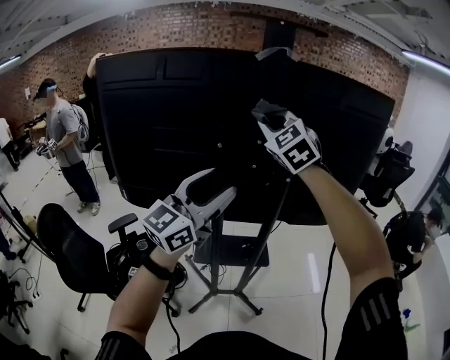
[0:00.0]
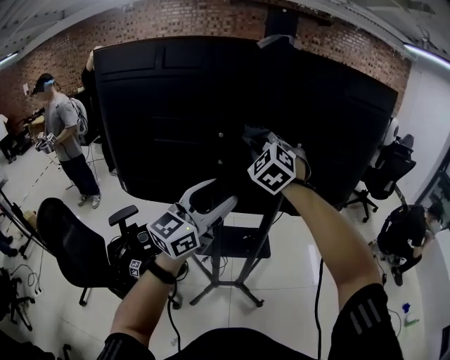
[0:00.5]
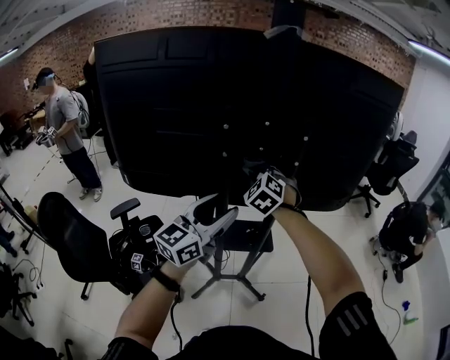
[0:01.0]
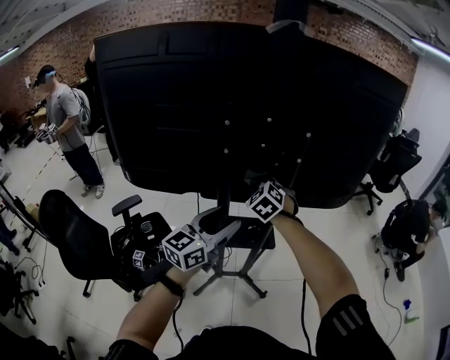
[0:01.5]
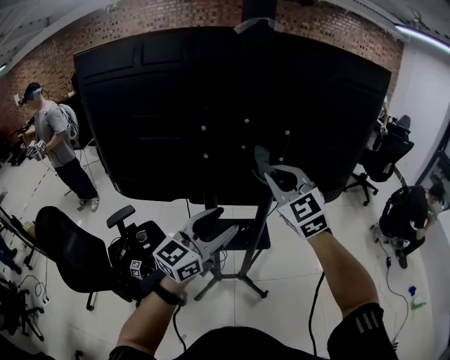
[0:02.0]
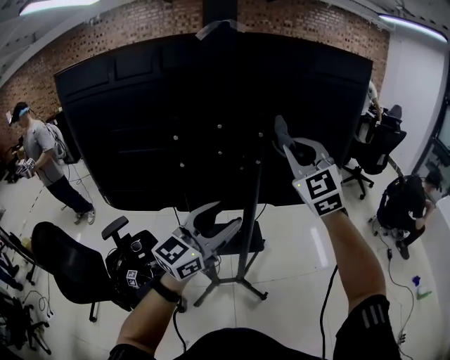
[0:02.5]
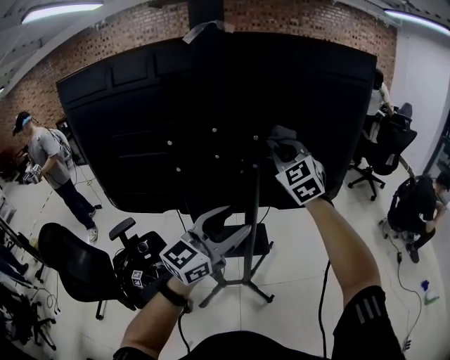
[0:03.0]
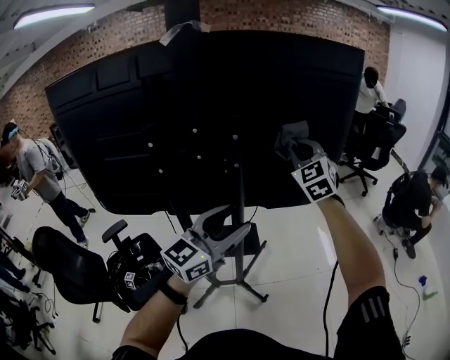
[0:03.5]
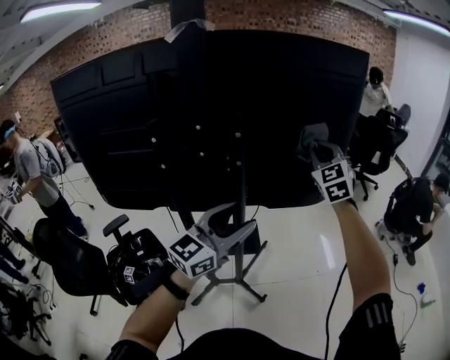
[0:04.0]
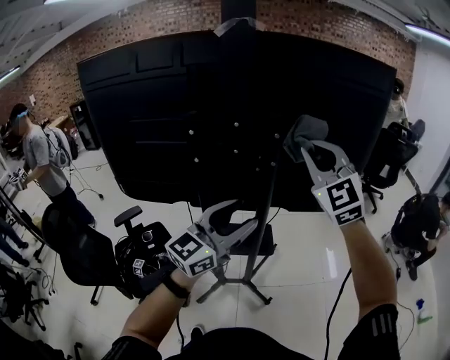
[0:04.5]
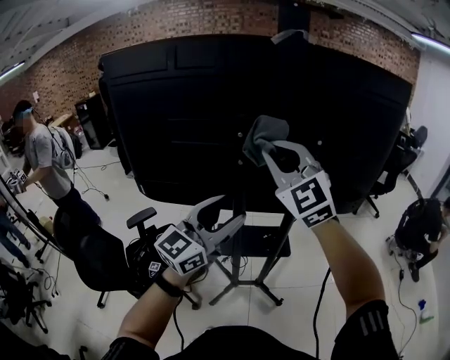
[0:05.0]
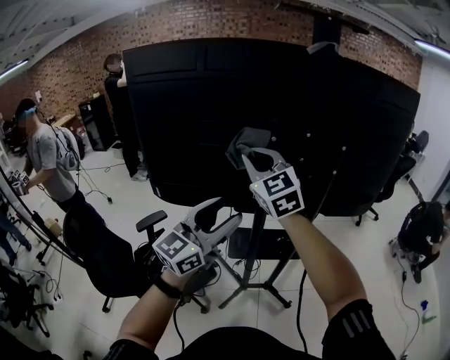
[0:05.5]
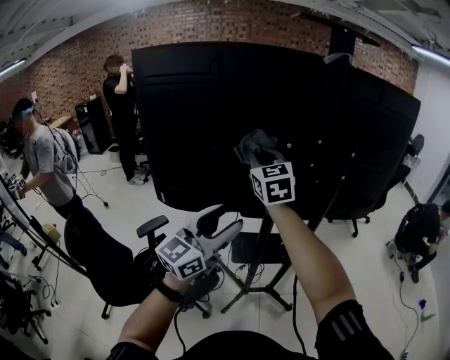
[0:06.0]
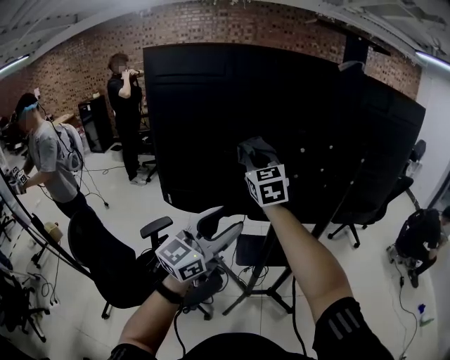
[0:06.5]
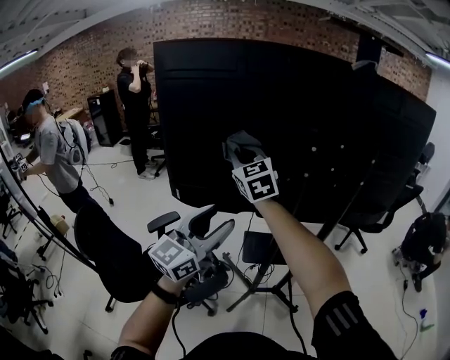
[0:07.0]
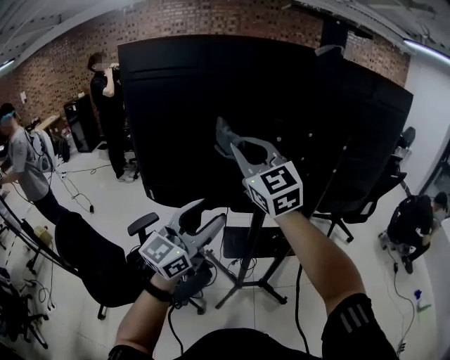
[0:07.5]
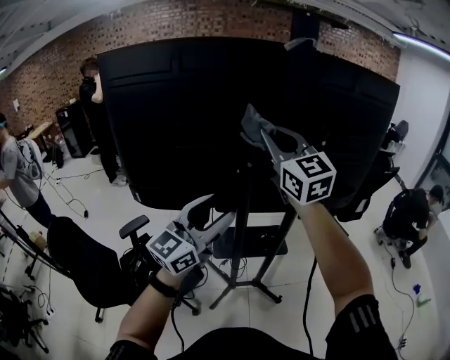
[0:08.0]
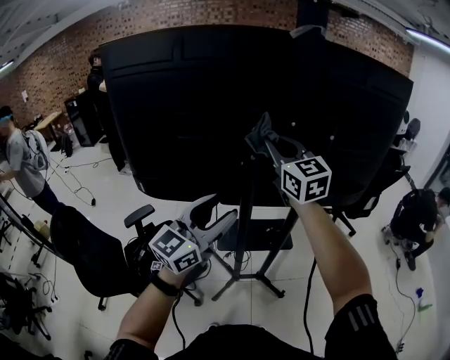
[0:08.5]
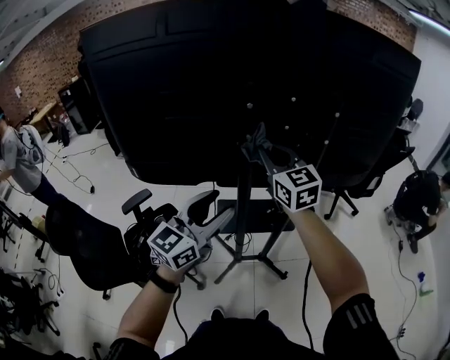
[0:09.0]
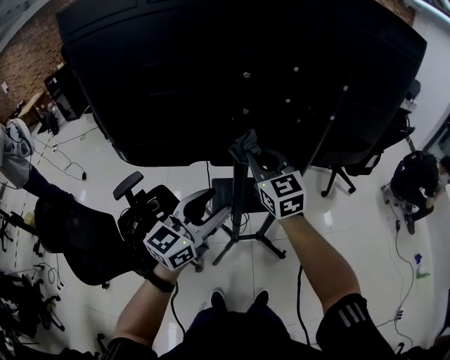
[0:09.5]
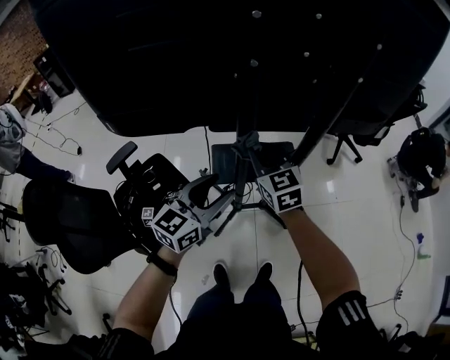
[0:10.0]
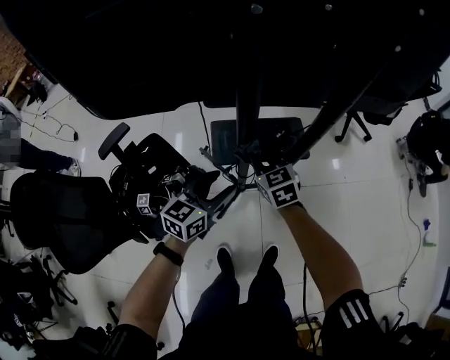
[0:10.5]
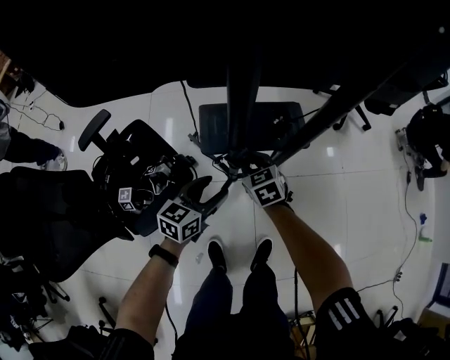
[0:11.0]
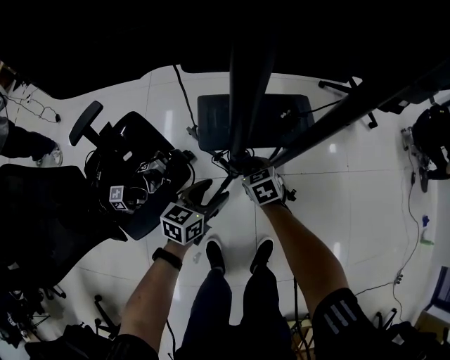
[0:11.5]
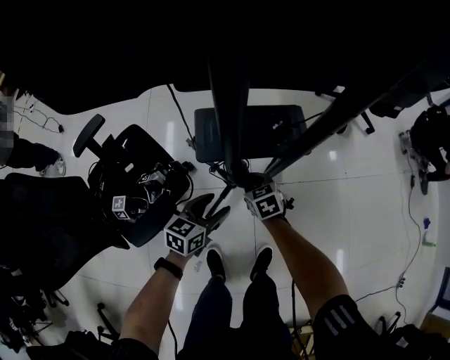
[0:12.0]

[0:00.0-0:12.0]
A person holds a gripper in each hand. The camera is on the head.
0:00.0 to 0:02.0: The right gripper travels downward, to the right and backward by roughly 20 cm. The left gripper is displaced downward by about 15 cm.
0:02.0 to 0:04.0: The left gripper goes about 15 cm to the right and forward, while the right gripper is displaced to the right and forward by some 30 cm, and changes its angle by roughly 20 degrees.
0:04.0 to 0:06.0: Both grippers travel together to the left, about 40 cm. The right gripper rotates roughly 20 degrees.
0:06.0 to 0:08.0: The right gripper travels to the right and upward by some 15 cm. The left gripper is displaced to the right by roughly 5 cm.
0:08.0 to 0:10.0: The left gripper travels downward by about 25 cm, and swivels roughly 30 degrees. The right gripper moves downward, some 40 cm, and changes its angle by about 30 degrees.
0:10.0 to 0:12.0: The two grippers go approximately 40 cm downward. The left gripper turns by roughly 30 degrees. The right gripper points its fingers some 30 degrees further downward.

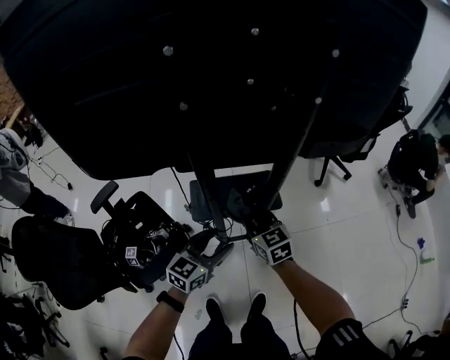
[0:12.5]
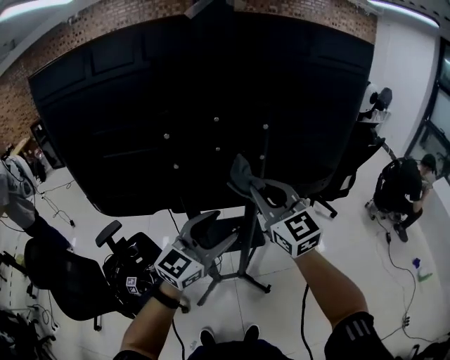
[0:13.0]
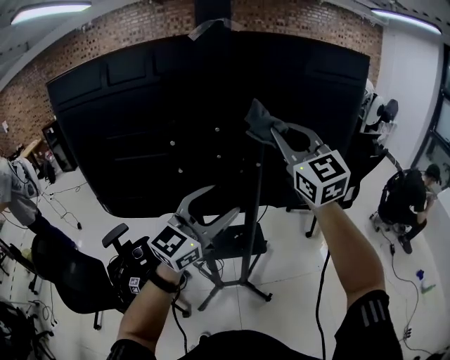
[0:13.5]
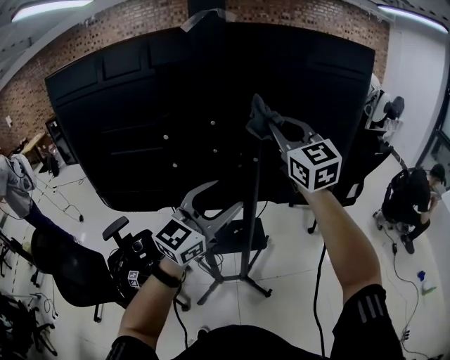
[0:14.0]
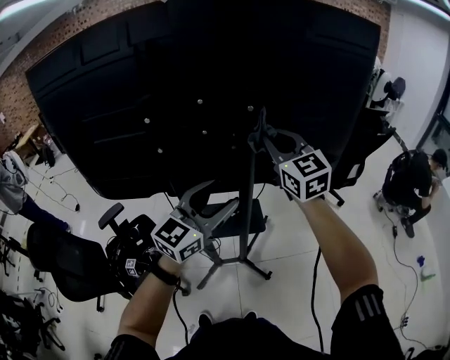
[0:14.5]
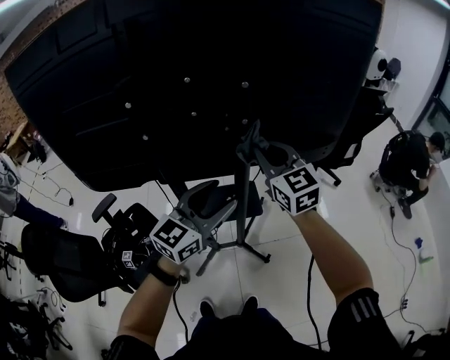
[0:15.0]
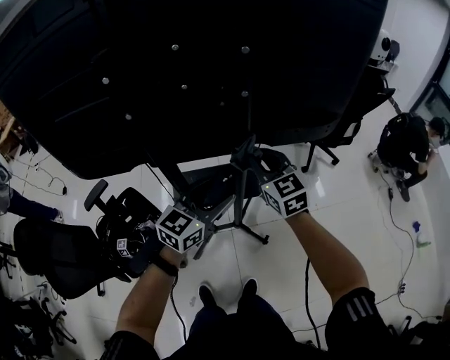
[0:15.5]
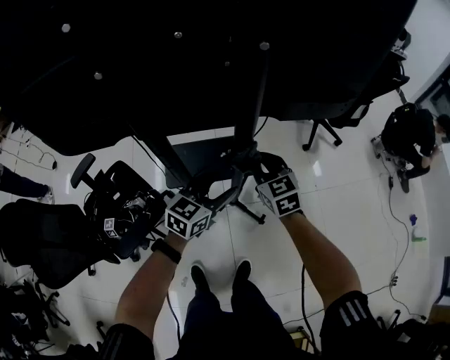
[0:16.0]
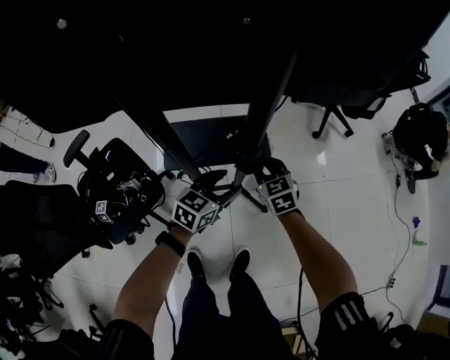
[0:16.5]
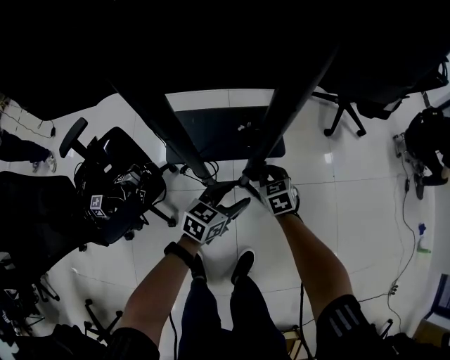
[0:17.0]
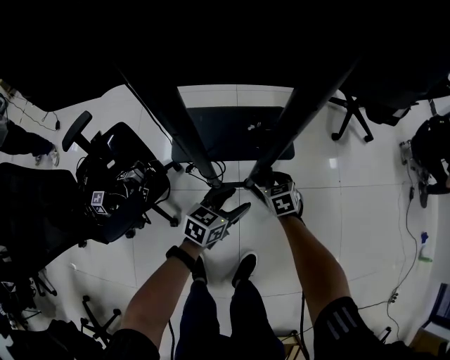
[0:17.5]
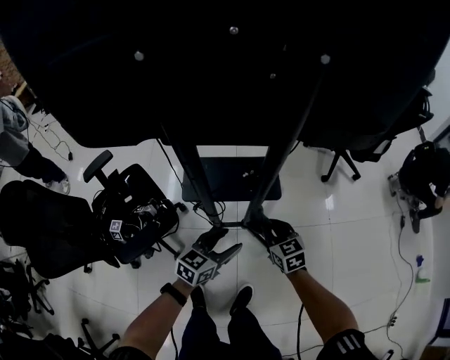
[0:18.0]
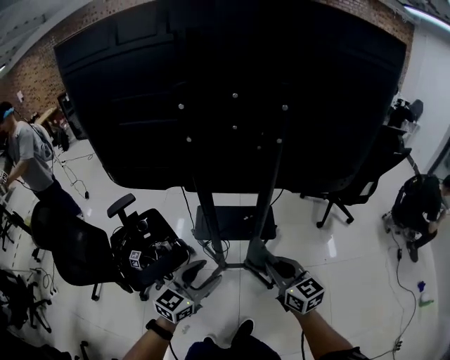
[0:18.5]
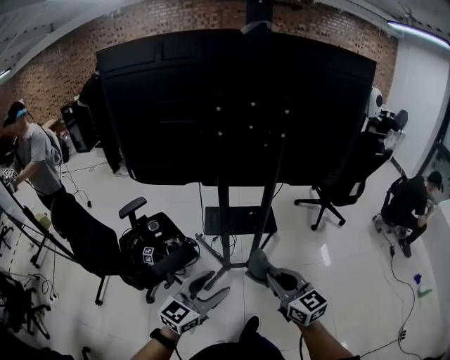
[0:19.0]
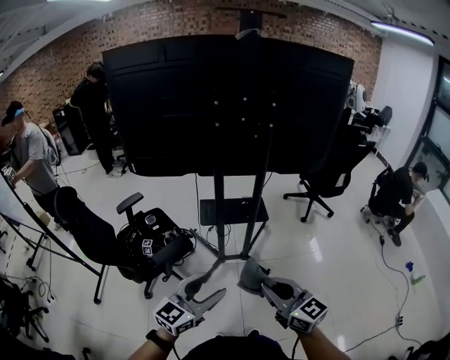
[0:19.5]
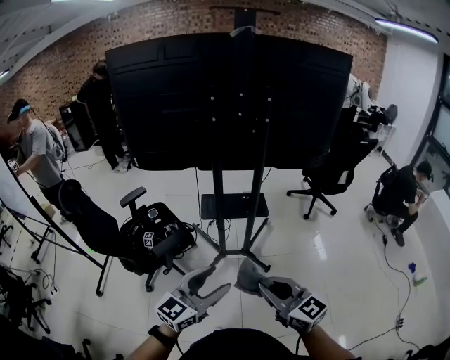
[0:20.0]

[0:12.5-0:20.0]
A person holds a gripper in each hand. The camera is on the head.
0:12.5 to 0:14.5: Both grippers move upward, approximately 35 cm. The right gripper changes its angle by approximately 30 degrees, while the left gripper rotates approximately 30 degrees.
0:14.5 to 0:16.5: Both grippers travel together downward, roughly 50 cm. The left gripper swivels some 40 degrees. Meanwhile the right gripper angles its fingers downward, by roughly 40 degrees.
0:16.5 to 0:18.0: The two grippers go approximately 10 cm backward. The right gripper reaches about 20 cm downward, then returns, while the left gripper moves some 15 cm downward and comes back.
0:18.0 to 0:20.0: The two grippers travel together, backward, approximately 40 cm. The grippers both shift upward by approximately 30 cm. The right gripper changes its angle by roughly 30 degrees. The left gripper swivels approximately 30 degrees.

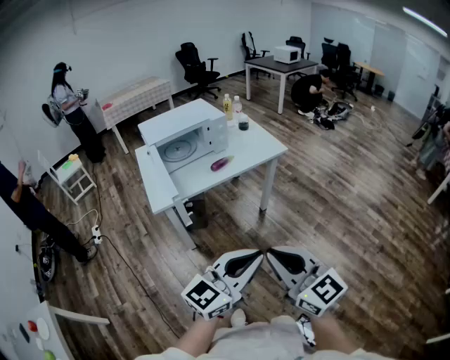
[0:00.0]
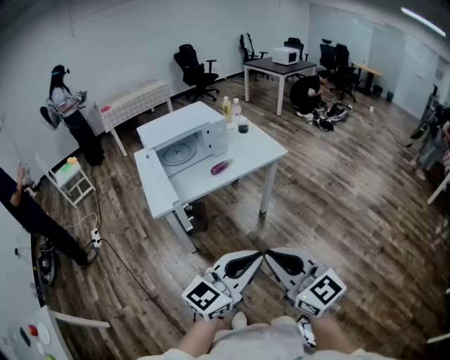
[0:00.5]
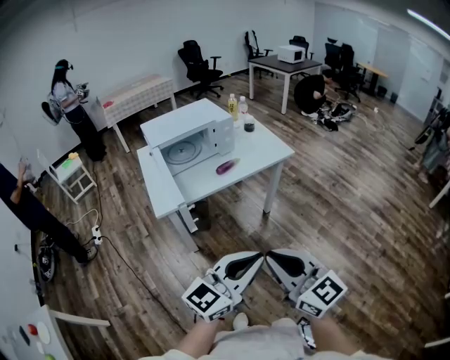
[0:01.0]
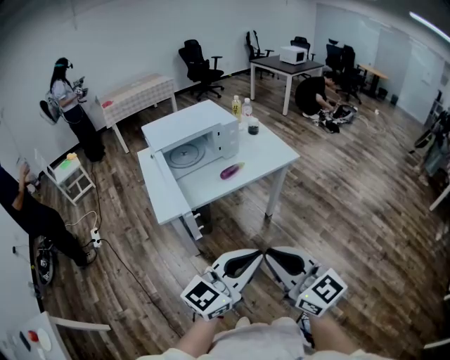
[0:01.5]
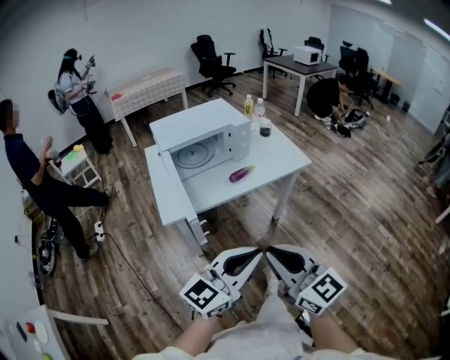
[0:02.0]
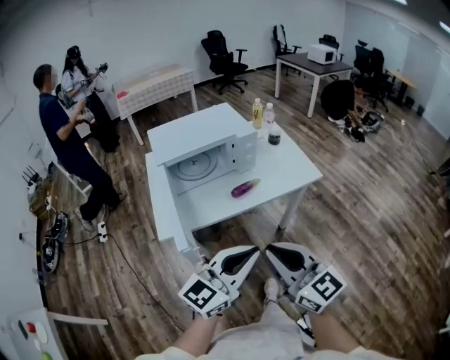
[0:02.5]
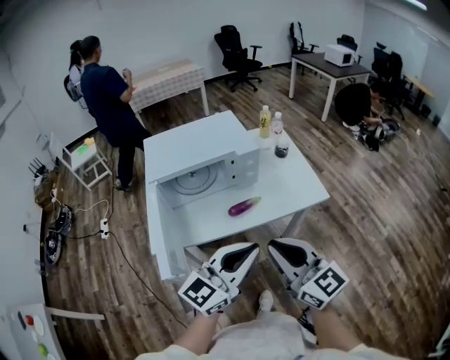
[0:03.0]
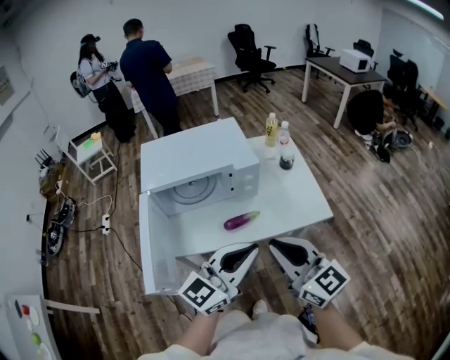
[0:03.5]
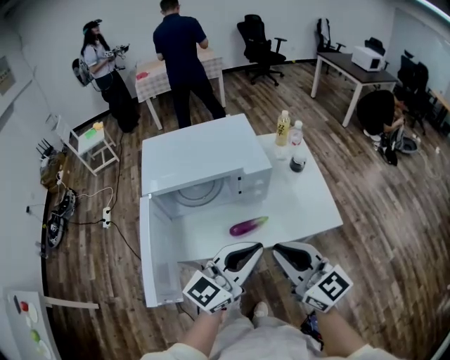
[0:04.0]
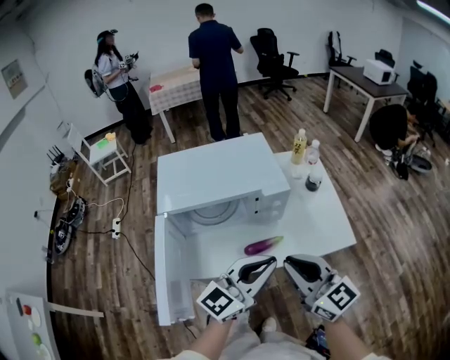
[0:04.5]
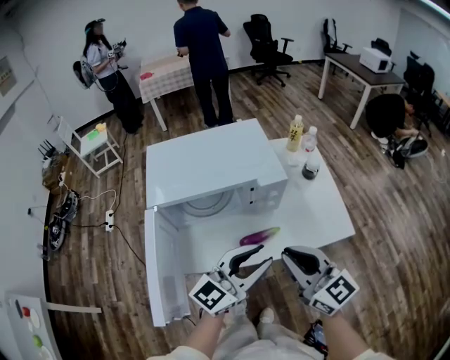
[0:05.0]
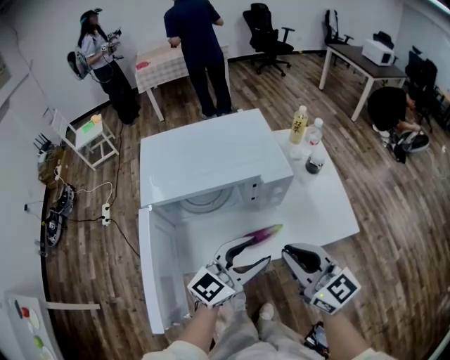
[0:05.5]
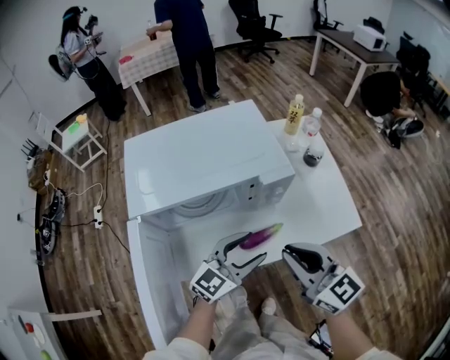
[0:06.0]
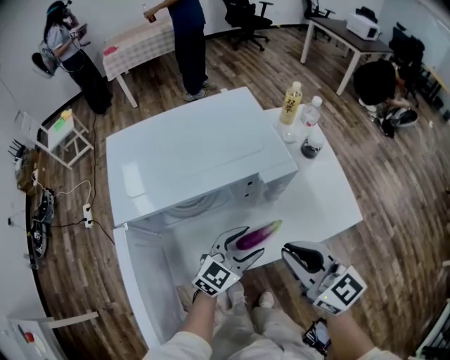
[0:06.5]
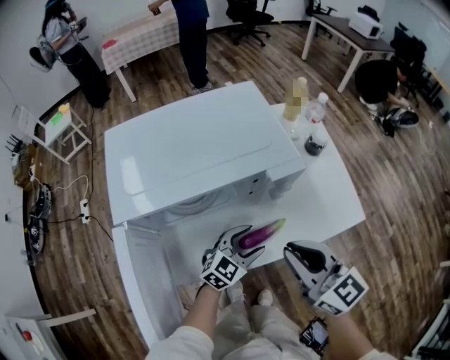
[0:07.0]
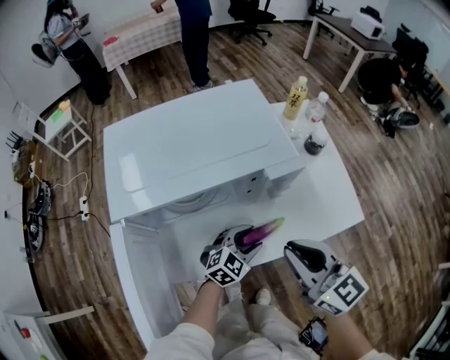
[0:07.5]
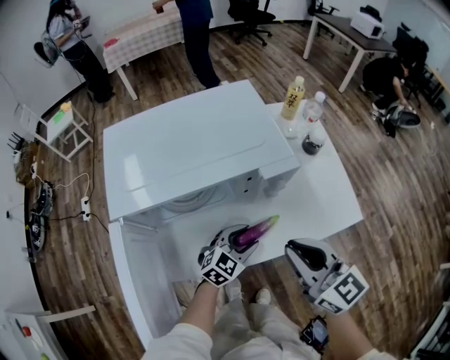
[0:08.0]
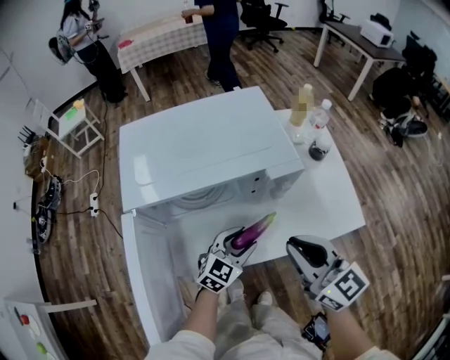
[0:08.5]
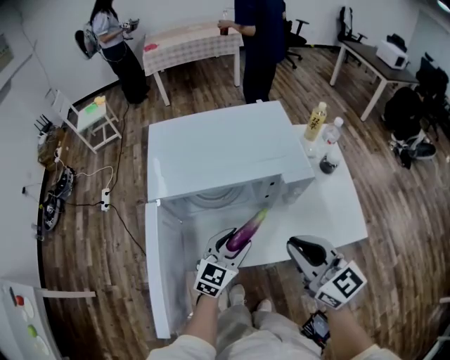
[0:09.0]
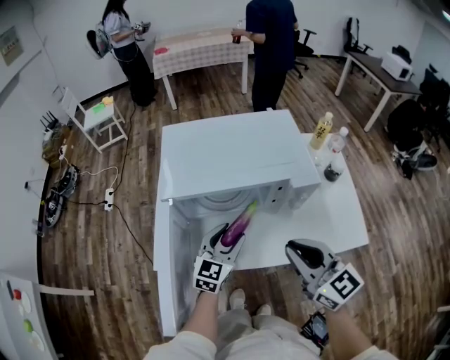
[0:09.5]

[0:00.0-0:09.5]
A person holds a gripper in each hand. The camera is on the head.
0:00.0 to 0:02.0: Both grippers travel together forward and to the left, about 15 cm.
0:02.0 to 0:04.0: The two grippers go some 35 cm forward.
0:04.0 to 0:05.5: The right gripper travels forward by some 5 cm; the left gripper heads downward and forward, covering approximately 10 cm, and opens up.
0:05.5 to 0:07.5: The left gripper travels downward by roughly 25 cm, and tips its fingers downward by roughly 30 degrees. Meanwhile the right gripper changes place by some 5 cm.
0:07.5 to 0:09.5: The left gripper travels to the left and upward by about 20 cm, and rotates some 40 degrees, while the right gripper changes place by about 5 cm.
